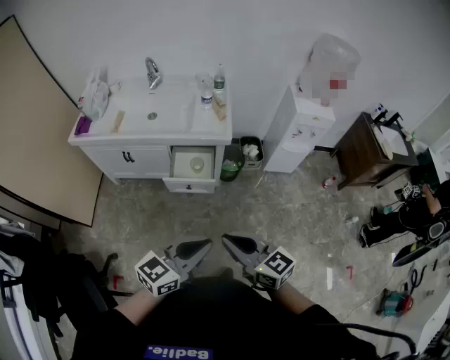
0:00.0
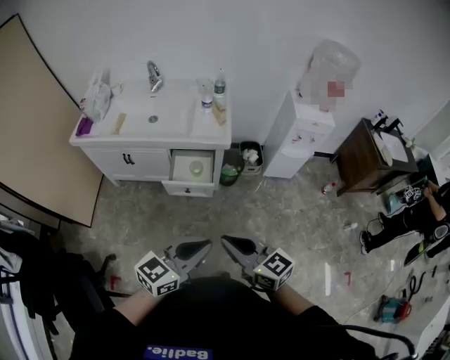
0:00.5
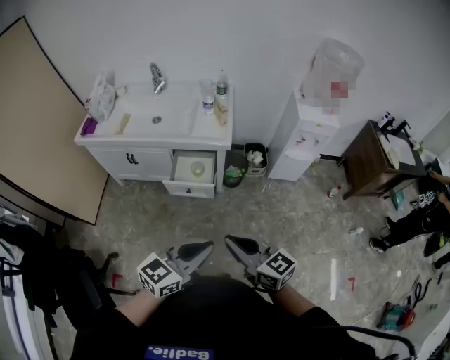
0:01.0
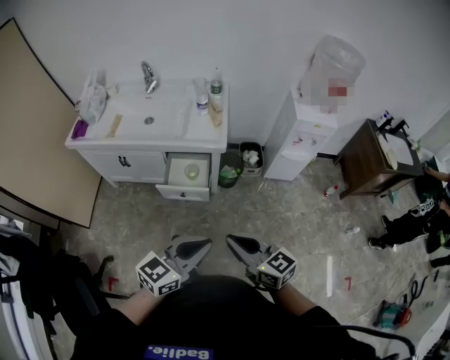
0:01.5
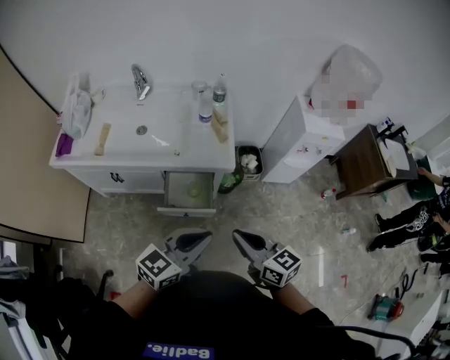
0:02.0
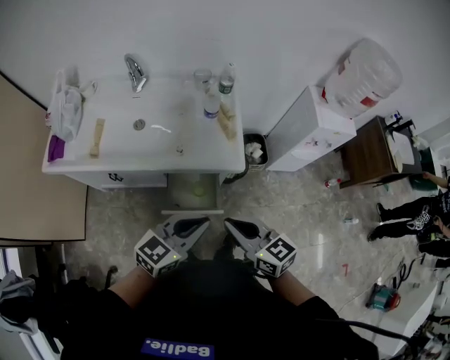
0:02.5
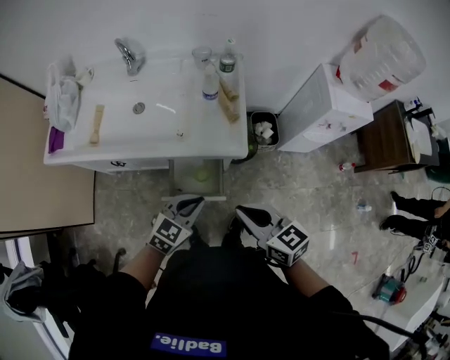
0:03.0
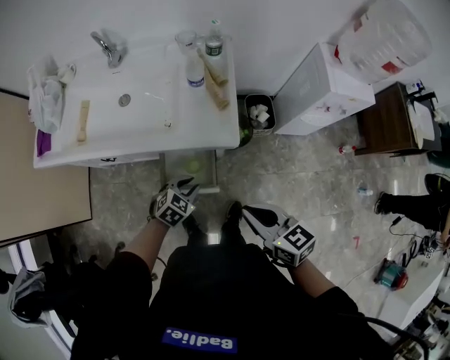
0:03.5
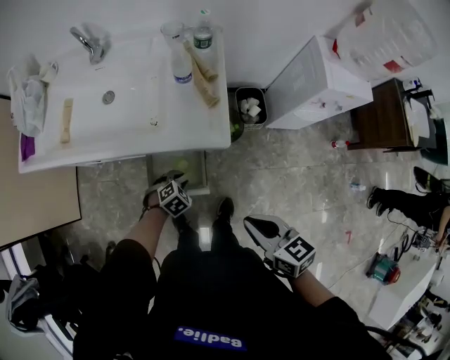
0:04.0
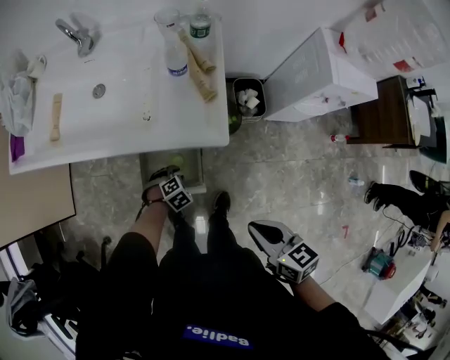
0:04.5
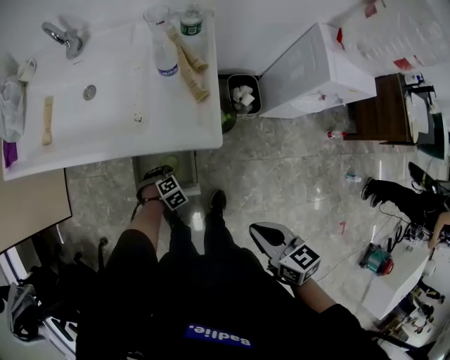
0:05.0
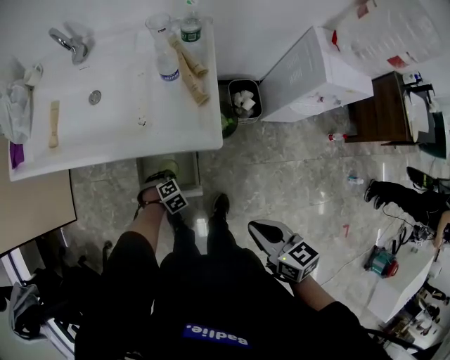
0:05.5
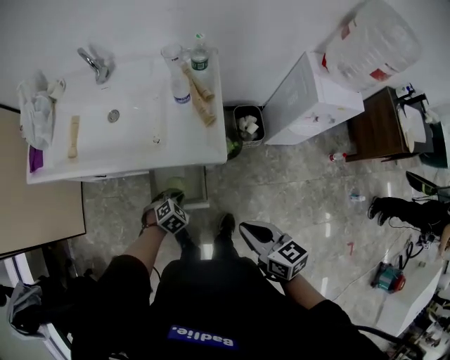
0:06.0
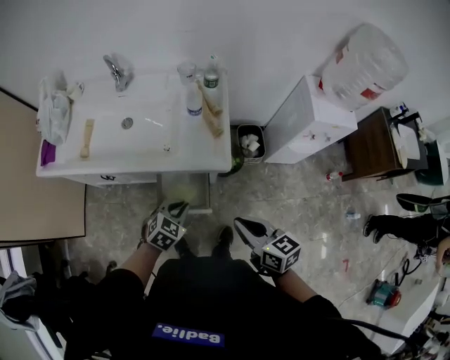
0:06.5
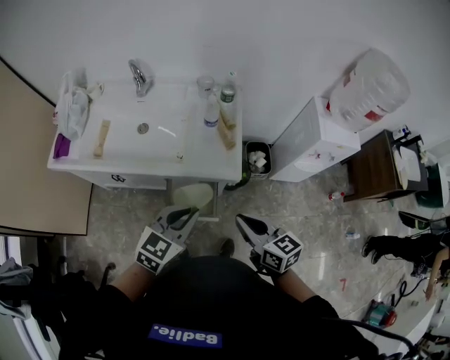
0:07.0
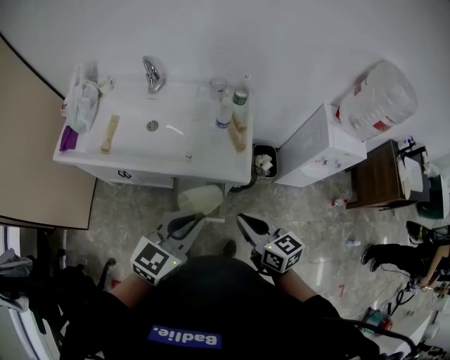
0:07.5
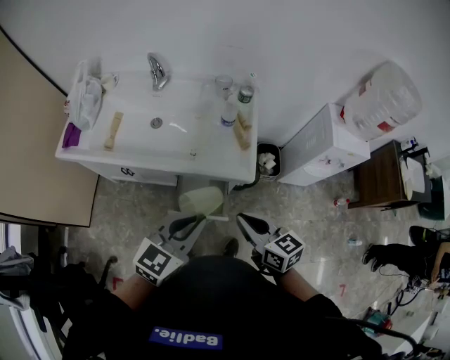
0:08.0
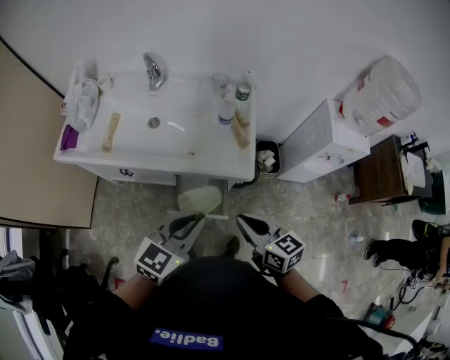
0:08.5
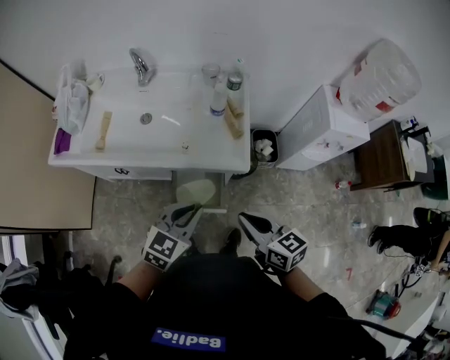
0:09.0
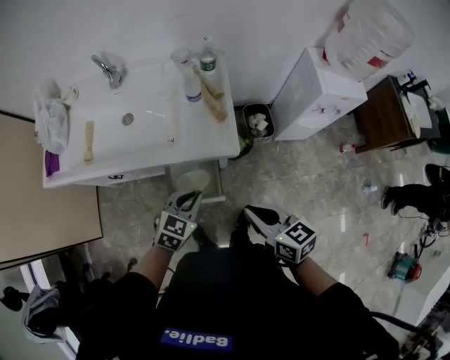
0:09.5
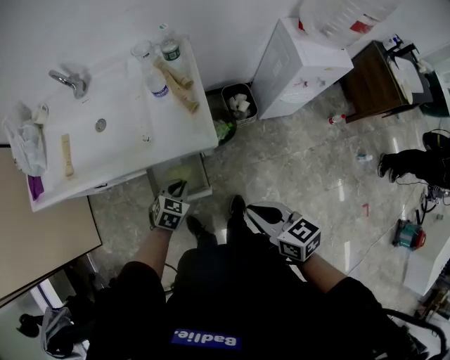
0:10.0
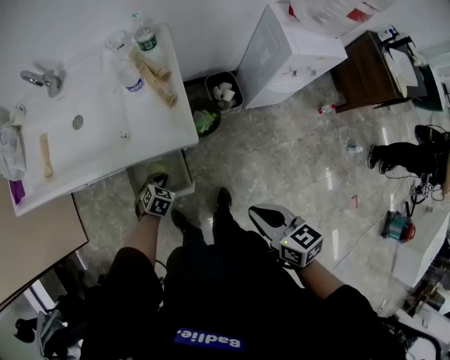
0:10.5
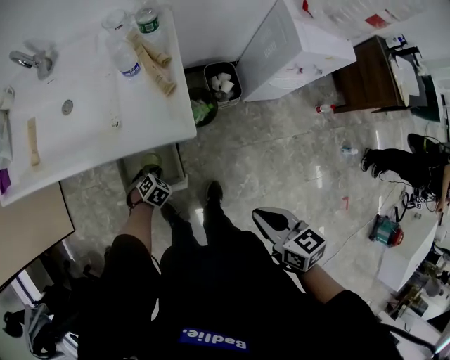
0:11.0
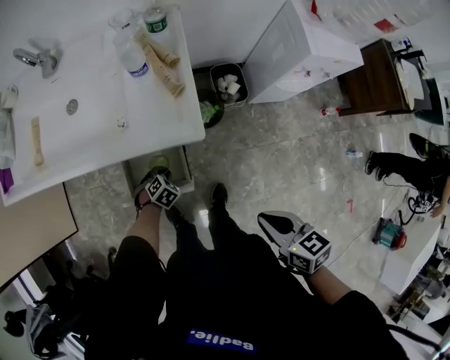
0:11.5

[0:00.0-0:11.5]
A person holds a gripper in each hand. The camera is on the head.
0:00.0 to 0:02.0: The two grippers go about 20 cm forward.
0:02.0 to 0:04.0: The left gripper is displaced downward and forward by about 40 cm, and tips its fingers downward by roughly 60 degrees. The right gripper heads downward, forward and to the right, covering roughly 15 cm.
0:04.0 to 0:06.0: The left gripper reaches about 10 cm downward, then returns.
0:06.0 to 0:07.5: The right gripper heads to the left and upward, covering approximately 10 cm, while the left gripper heads upward, covering some 35 cm, and angles its fingers upward, by approximately 50 degrees.
0:07.5 to 0:09.5: The right gripper heads to the right, covering roughly 5 cm; the left gripper travels downward by some 20 cm, and turns by about 20 degrees.
0:09.5 to 0:11.5: The left gripper shifts about 30 cm downward, and angles its fingers downward, by about 40 degrees. The right gripper moves approximately 15 cm.

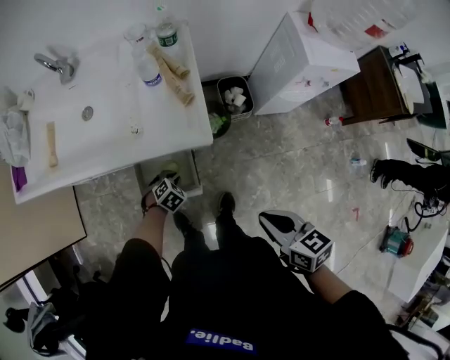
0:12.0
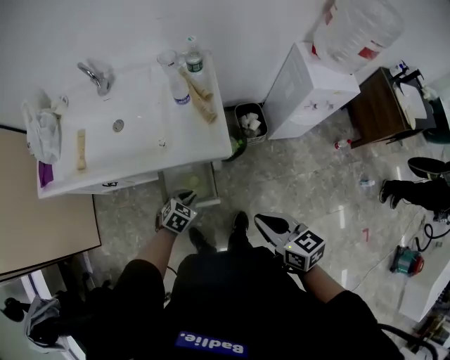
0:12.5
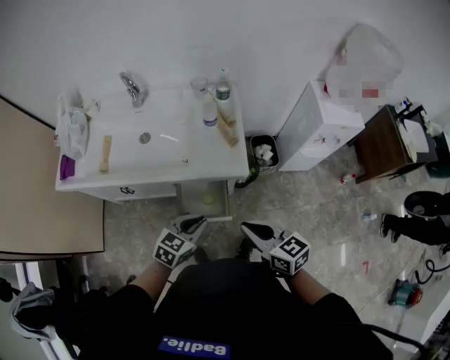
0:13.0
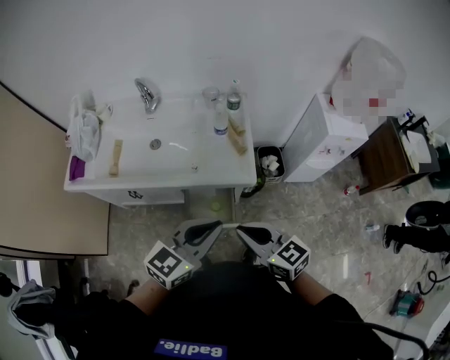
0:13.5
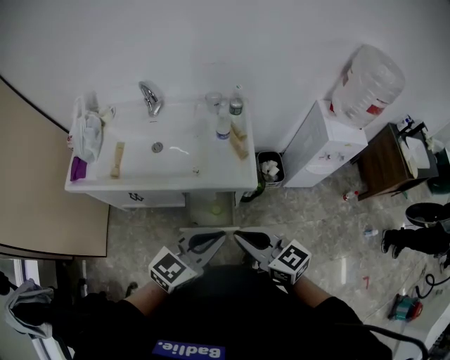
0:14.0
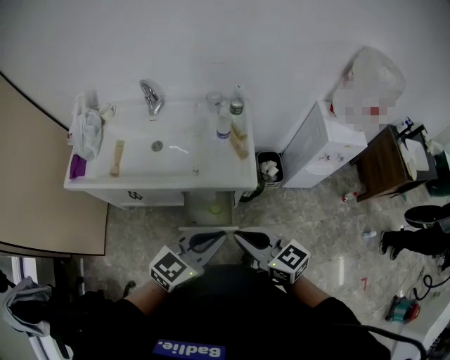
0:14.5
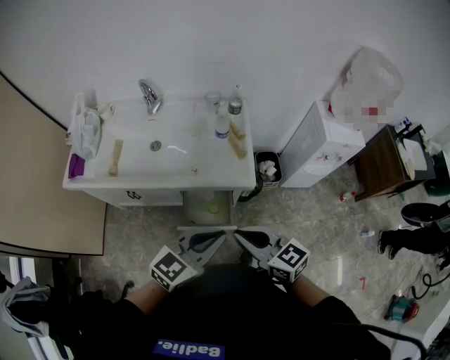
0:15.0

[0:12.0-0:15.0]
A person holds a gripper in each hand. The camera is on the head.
0:12.0 to 0:13.5: The right gripper is displaced to the left and upward by roughly 25 cm, and swivels approximately 30 degrees; the left gripper travels upward by some 50 cm, and points its fingers some 60 degrees further upward.
0:13.5 to 0:15.0: There are only small adjustments of the grippers.

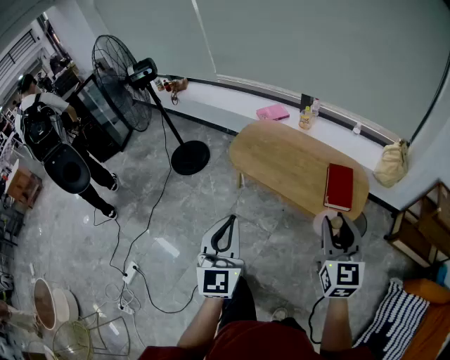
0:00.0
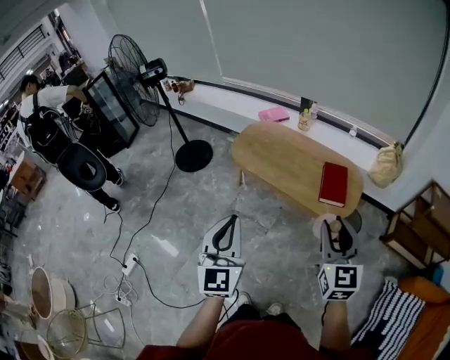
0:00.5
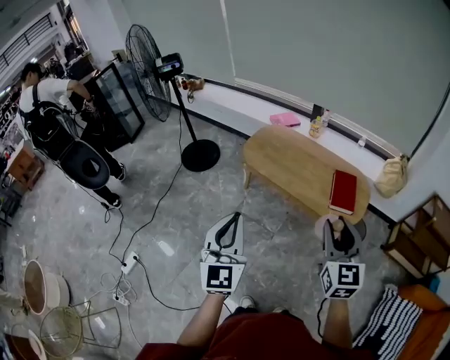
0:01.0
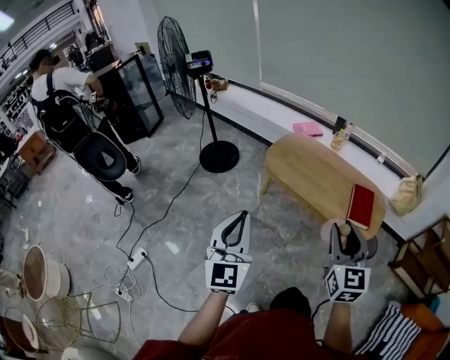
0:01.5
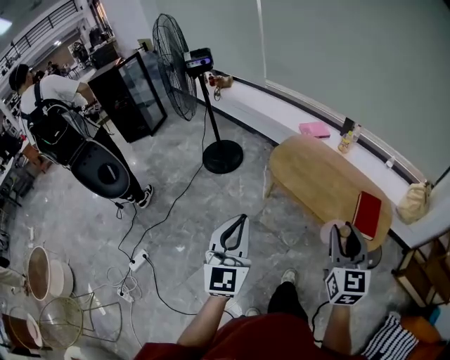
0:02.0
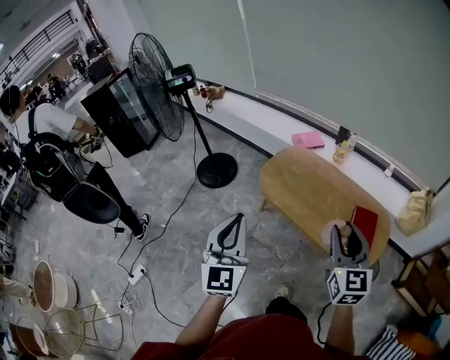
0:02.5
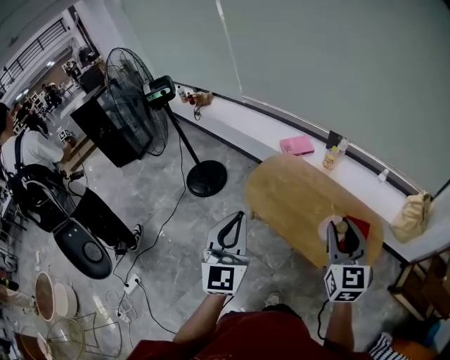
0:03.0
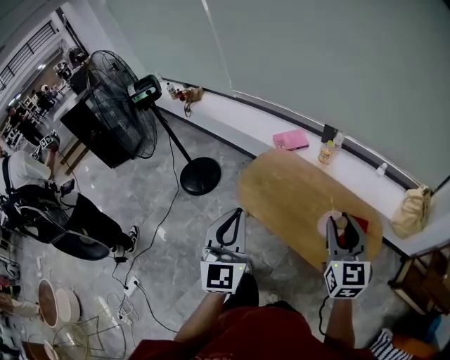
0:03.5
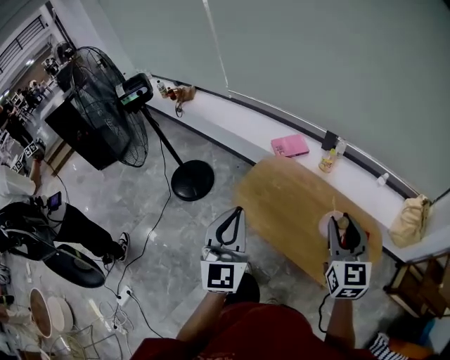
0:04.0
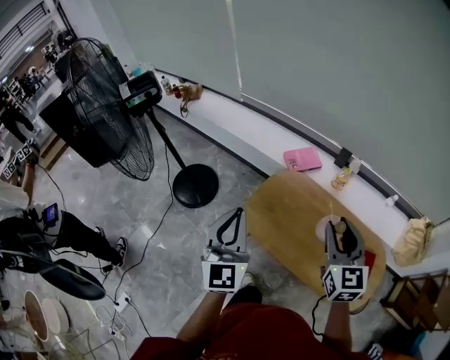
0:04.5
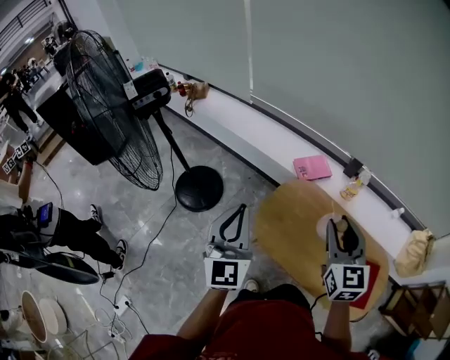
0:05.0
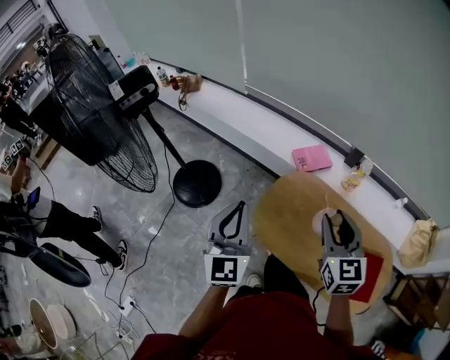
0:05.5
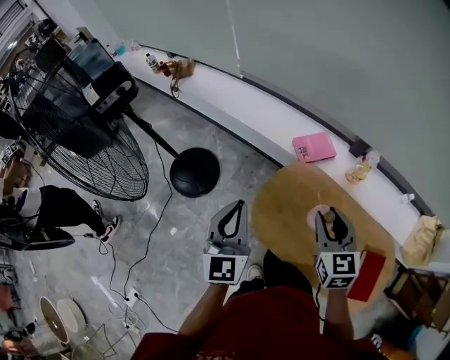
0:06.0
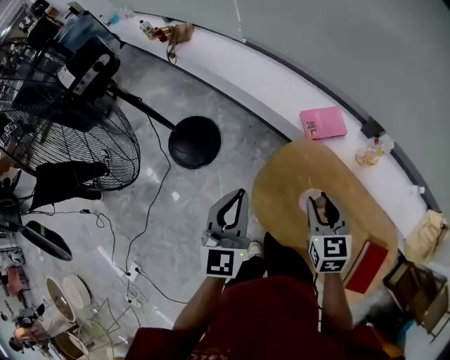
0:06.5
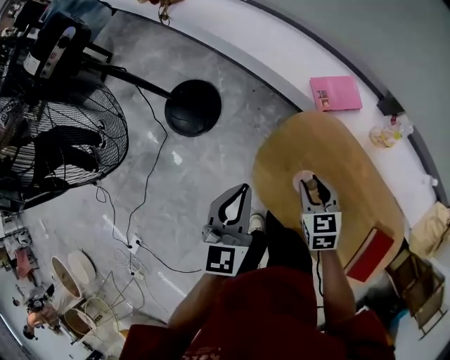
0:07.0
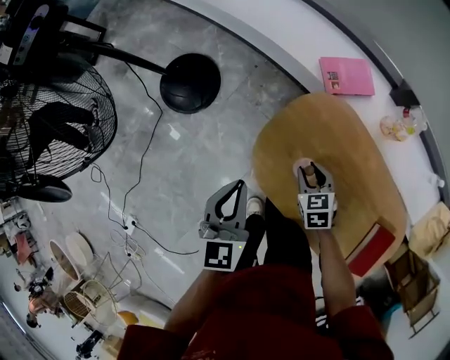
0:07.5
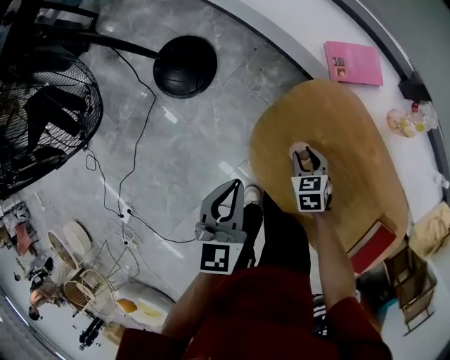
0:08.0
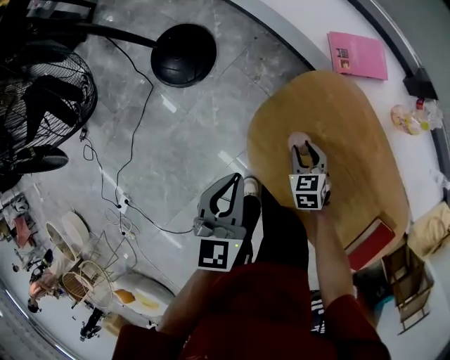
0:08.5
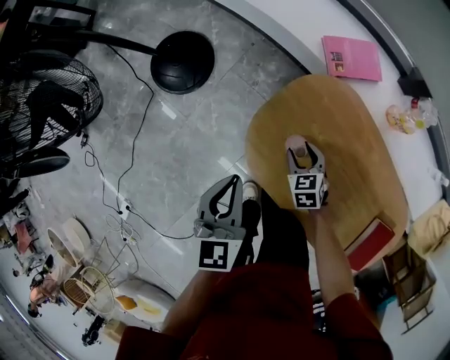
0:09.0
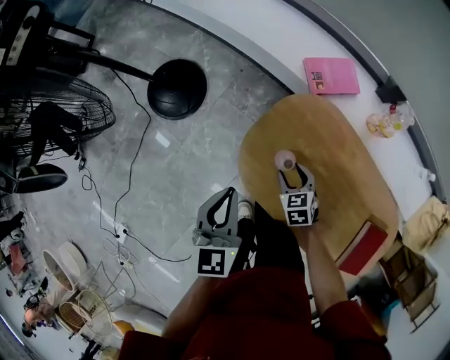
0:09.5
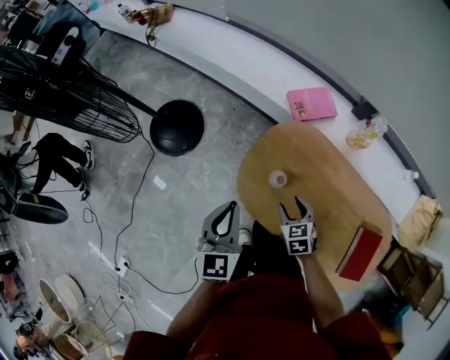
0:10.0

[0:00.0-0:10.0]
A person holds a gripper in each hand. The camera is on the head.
0:00.0 to 0:02.0: The two grippers go some 15 cm to the left.
0:02.0 to 0:04.0: The grippers both shift forward by approximately 35 cm.
0:04.0 to 0:06.0: The grippers both shift forward and to the left by some 35 cm.
0:06.0 to 0:08.0: The left gripper moves downward, roughly 25 cm, and rotates some 30 degrees. The right gripper heads downward, covering some 40 cm, and tips its fingers downward by some 30 degrees.
0:08.0 to 0:10.0: The right gripper shifts roughly 15 cm upward and backward. Meanwhile the left gripper moves upward, roughly 10 cm.

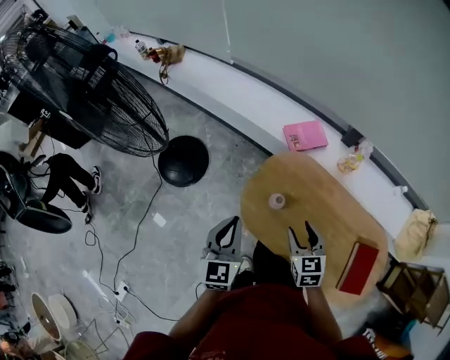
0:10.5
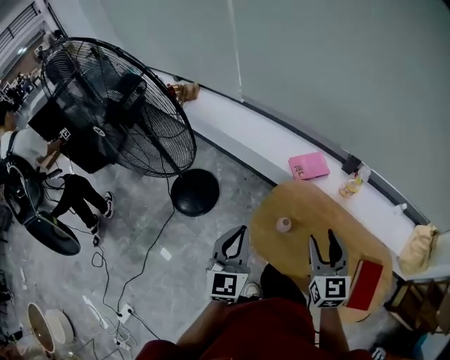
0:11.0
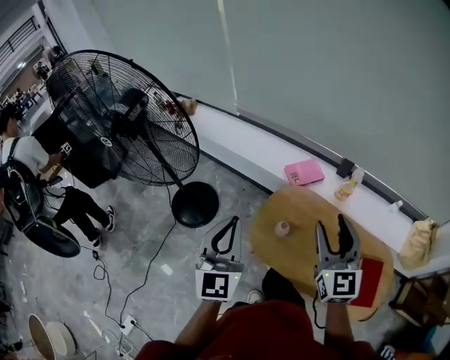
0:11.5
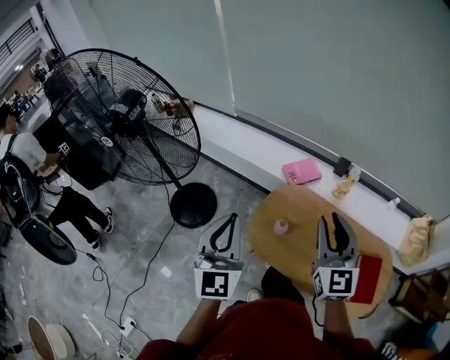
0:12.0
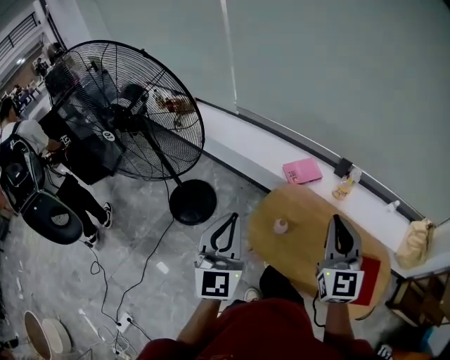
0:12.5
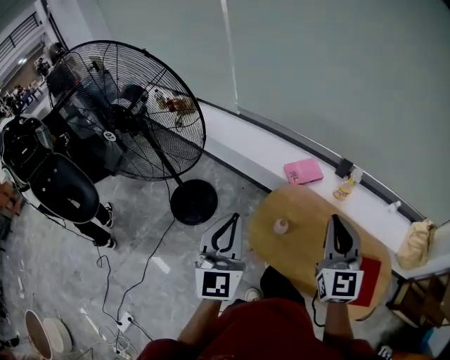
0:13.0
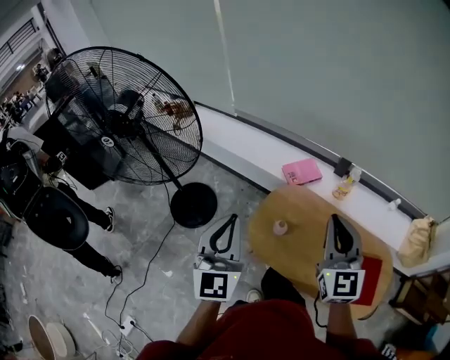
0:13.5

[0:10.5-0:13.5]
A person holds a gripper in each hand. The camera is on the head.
0:10.5 to 0:12.0: Both grippers travel together upward, roughly 25 cm. The left gripper turns by about 30 degrees; the right gripper angles its fingers upward, by approximately 40 degrees, and closes its fingers.
0:12.0 to 0:13.5: The right gripper closes up.
